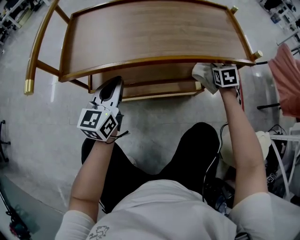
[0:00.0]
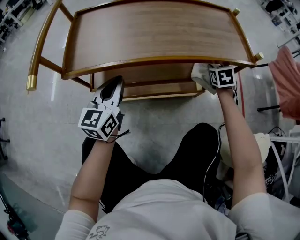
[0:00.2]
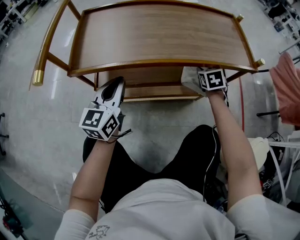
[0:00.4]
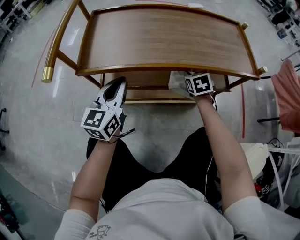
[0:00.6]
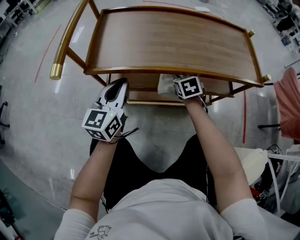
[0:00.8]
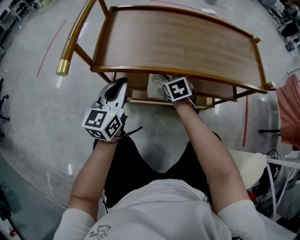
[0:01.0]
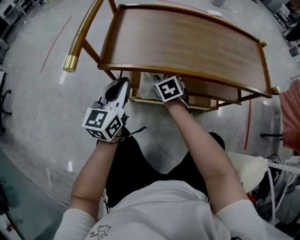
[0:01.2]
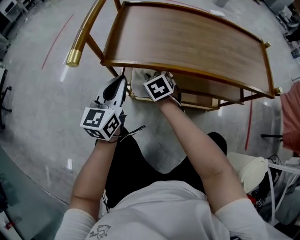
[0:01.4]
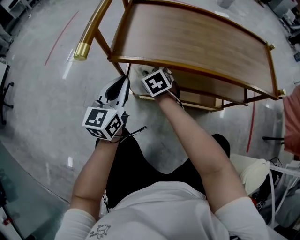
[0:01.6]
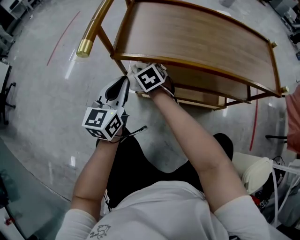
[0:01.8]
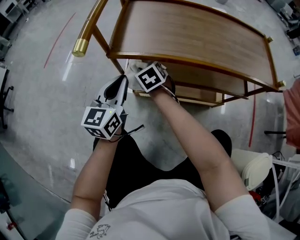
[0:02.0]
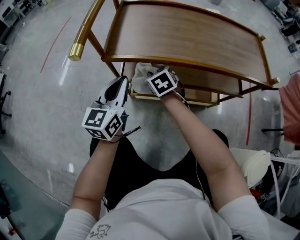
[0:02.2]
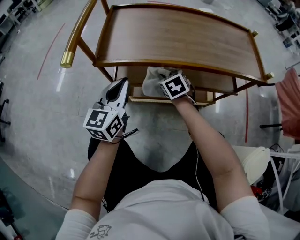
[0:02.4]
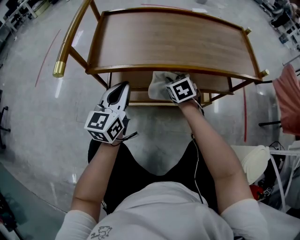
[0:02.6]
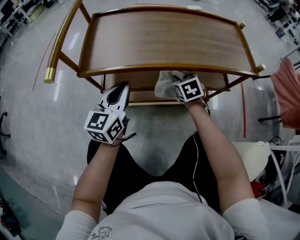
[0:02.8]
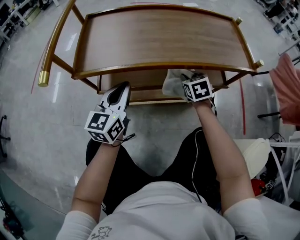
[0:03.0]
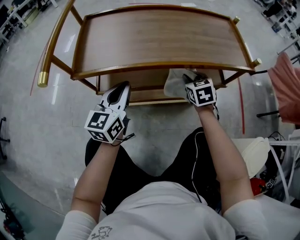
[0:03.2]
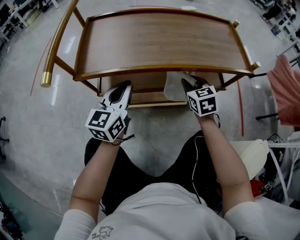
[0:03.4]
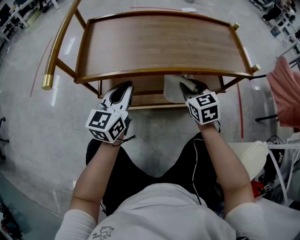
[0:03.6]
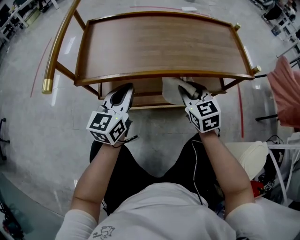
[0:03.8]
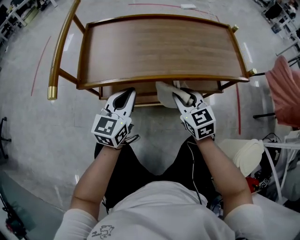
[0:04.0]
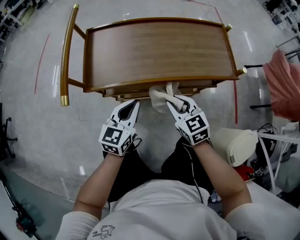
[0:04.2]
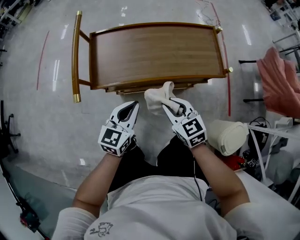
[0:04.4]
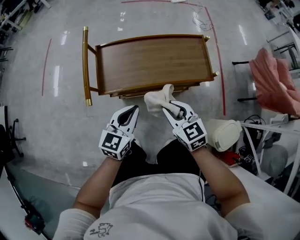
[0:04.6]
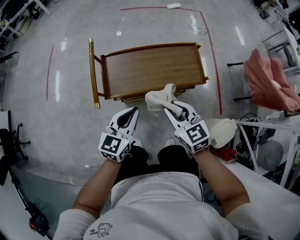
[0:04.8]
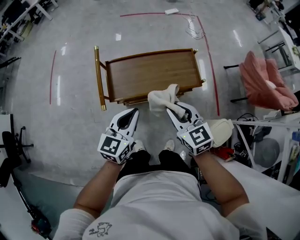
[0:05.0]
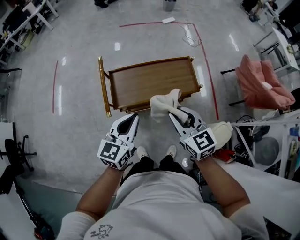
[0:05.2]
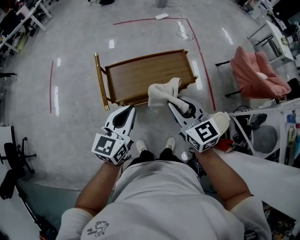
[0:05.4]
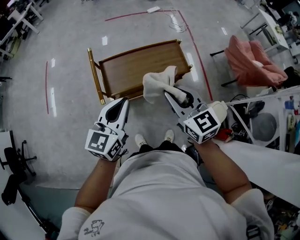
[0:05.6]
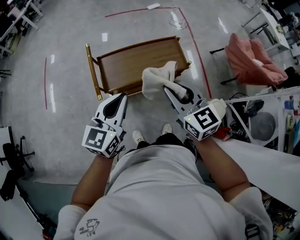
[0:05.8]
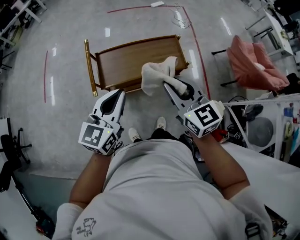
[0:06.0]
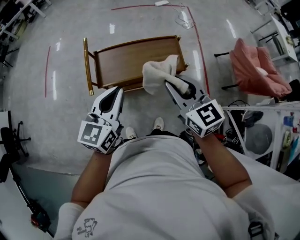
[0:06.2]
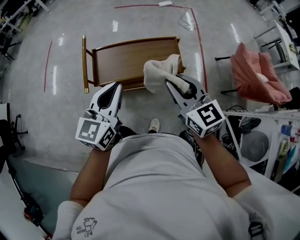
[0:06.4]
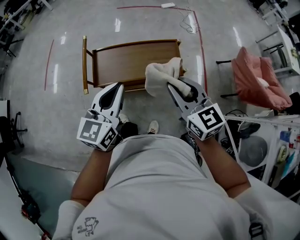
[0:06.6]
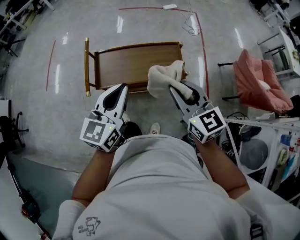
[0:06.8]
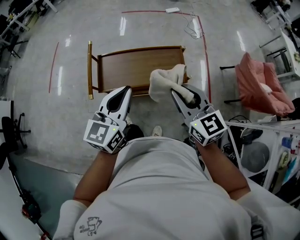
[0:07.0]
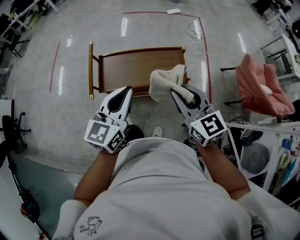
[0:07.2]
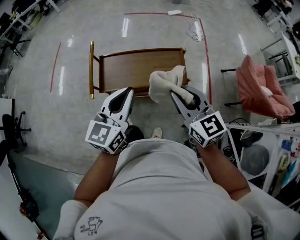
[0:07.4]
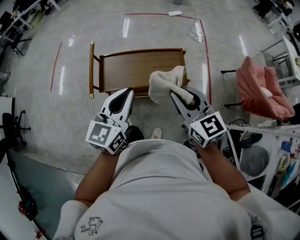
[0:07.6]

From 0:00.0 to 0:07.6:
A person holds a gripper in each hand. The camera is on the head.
From 0:00.0 to 0:01.6: The left gripper ends up roughly 15 cm from where it was, while the right gripper moves approximately 50 cm, and swivels approximately 40 degrees.
From 0:01.6 to 0:03.0: The left gripper is displaced to the right by about 10 cm. The right gripper is displaced to the right by roughly 30 cm, and turns by roughly 20 degrees.
From 0:03.0 to 0:04.6: The right gripper moves upward and backward, some 40 cm, and swivels roughly 20 degrees, while the left gripper travels upward by about 25 cm.
From 0:04.6 to 0:06.0: Both grippers move upward, roughly 30 cm.
From 0:06.0 to 0:07.6: The grippers both shift to the right by approximately 10 cm.

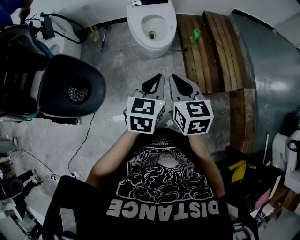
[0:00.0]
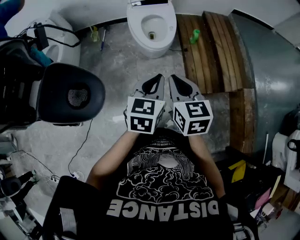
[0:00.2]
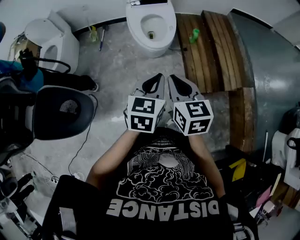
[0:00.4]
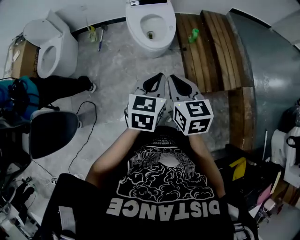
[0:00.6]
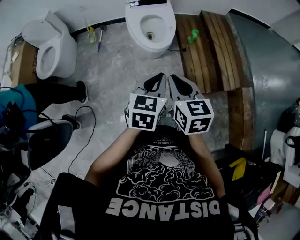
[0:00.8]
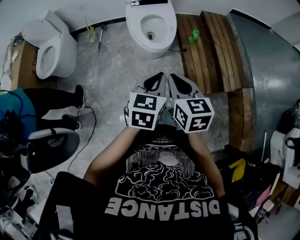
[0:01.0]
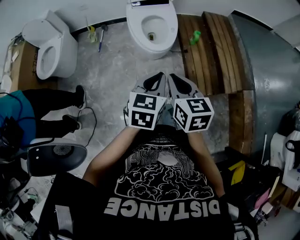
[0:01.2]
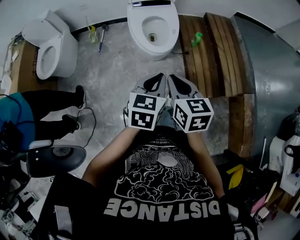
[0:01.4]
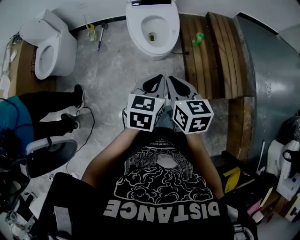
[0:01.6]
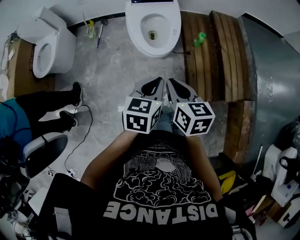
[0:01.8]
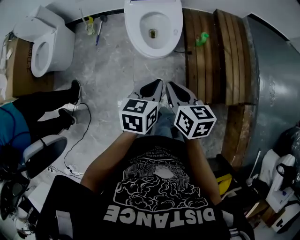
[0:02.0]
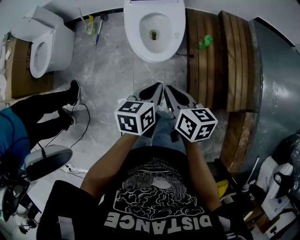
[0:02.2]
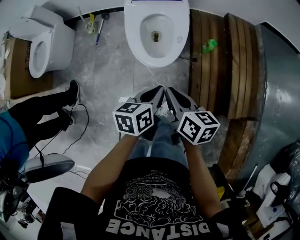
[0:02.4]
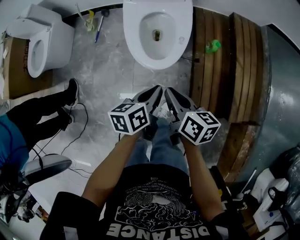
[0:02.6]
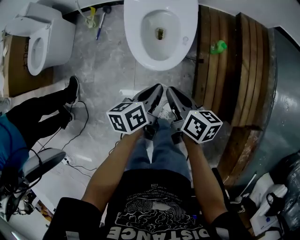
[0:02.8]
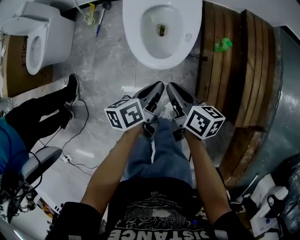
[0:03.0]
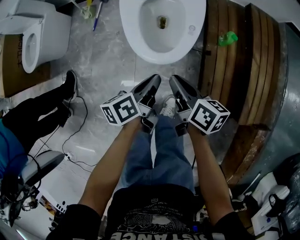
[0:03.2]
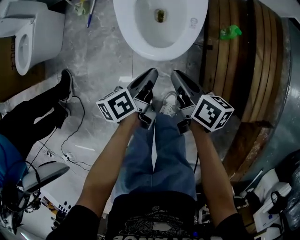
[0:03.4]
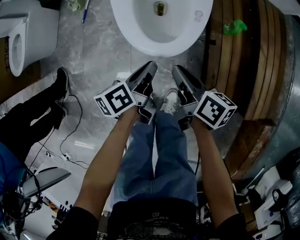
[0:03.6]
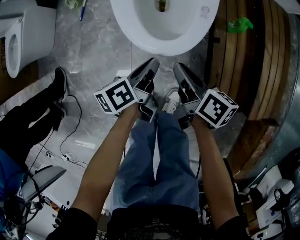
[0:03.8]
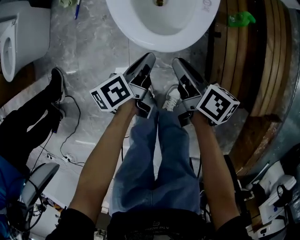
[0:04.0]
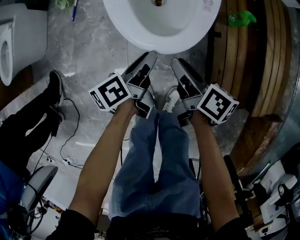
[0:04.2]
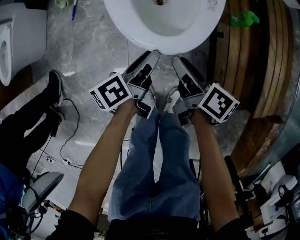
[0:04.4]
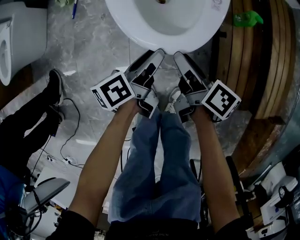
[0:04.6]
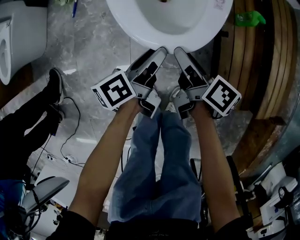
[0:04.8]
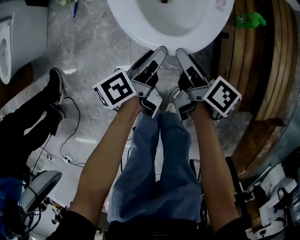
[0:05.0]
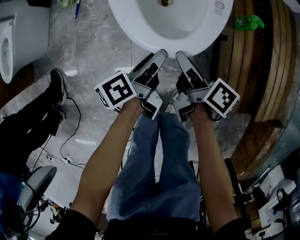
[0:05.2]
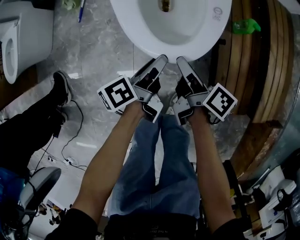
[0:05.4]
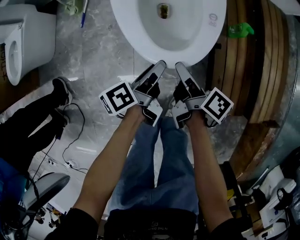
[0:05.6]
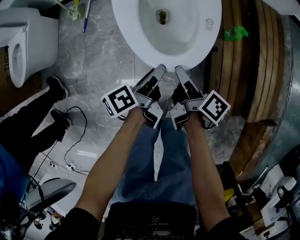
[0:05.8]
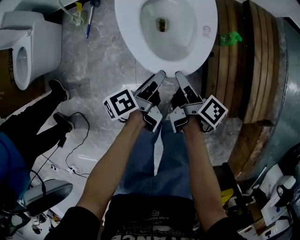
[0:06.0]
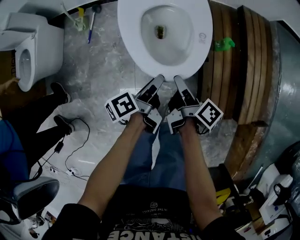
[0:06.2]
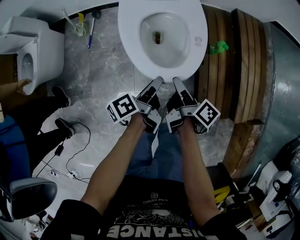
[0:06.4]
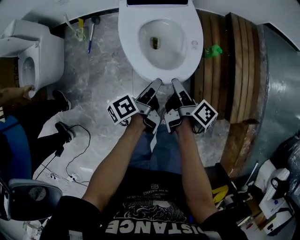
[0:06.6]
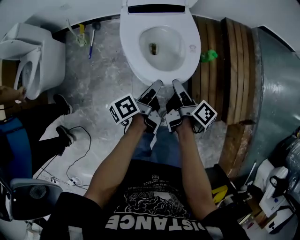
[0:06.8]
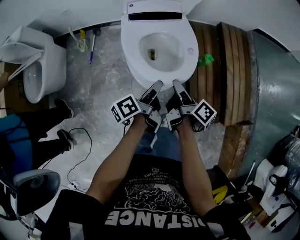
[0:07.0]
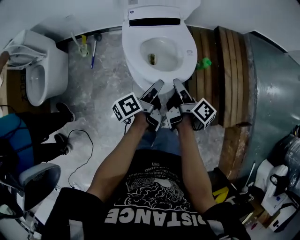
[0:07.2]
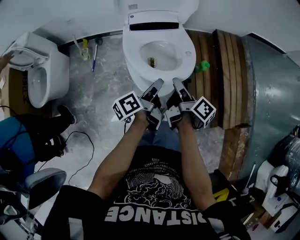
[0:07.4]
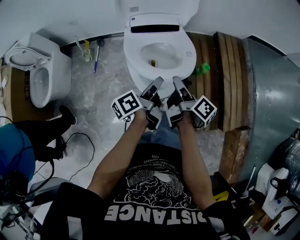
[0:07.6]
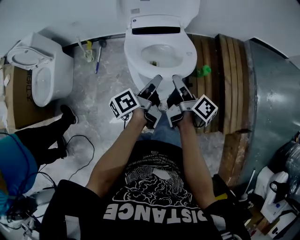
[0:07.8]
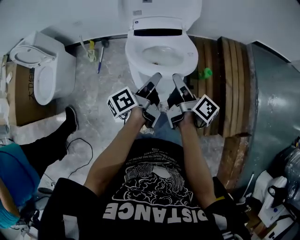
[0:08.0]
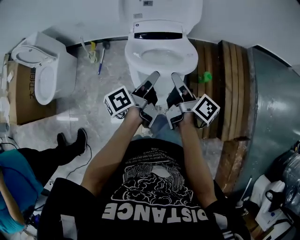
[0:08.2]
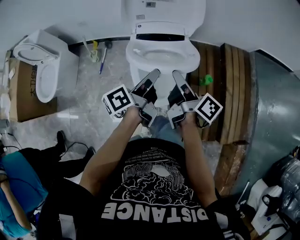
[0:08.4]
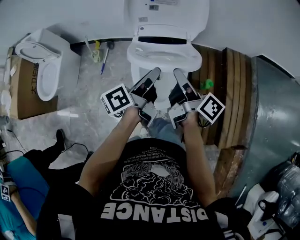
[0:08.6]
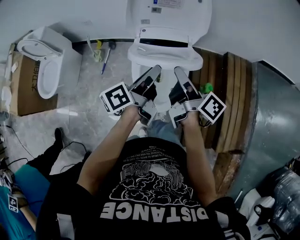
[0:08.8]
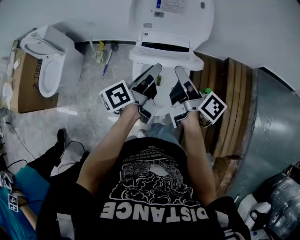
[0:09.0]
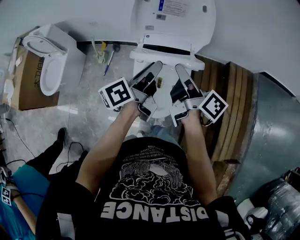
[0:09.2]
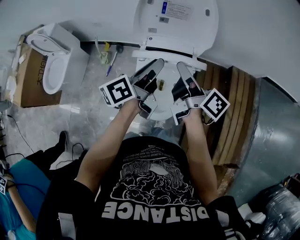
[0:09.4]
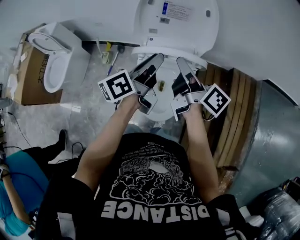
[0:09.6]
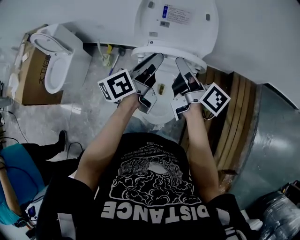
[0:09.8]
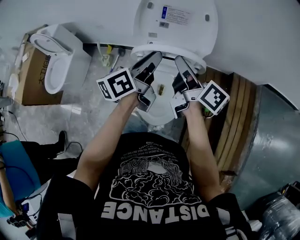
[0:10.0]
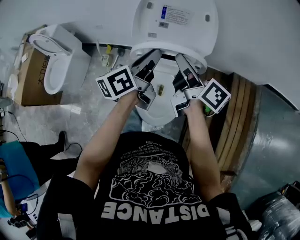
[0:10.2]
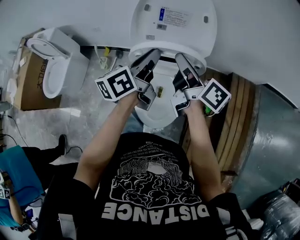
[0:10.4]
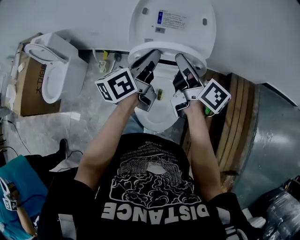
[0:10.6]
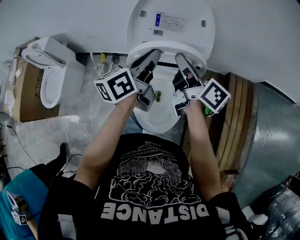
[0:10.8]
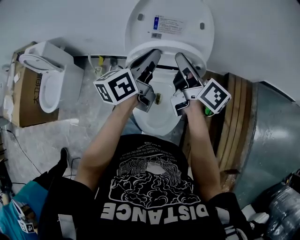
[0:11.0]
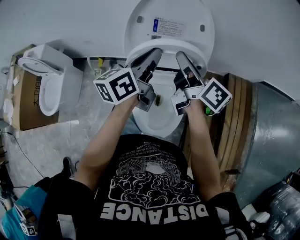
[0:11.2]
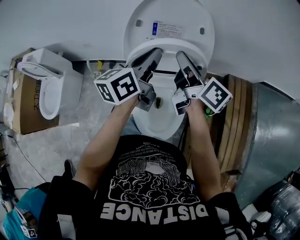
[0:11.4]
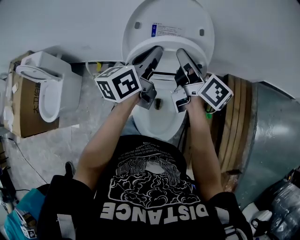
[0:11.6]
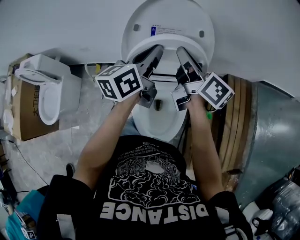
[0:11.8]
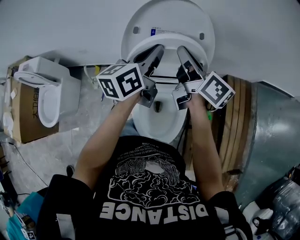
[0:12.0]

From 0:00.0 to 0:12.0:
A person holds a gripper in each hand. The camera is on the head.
From 0:00.0 to 0:01.6: The two grippers go some 10 cm forward.
From 0:01.6 to 0:03.0: The left gripper heads downward and forward, covering approximately 30 cm, and twists about 50 degrees counterclockwise, seen from behind; the right gripper is displaced forward and downward by roughly 30 cm, and changes its angle by some 40 degrees.
From 0:03.0 to 0:04.4: Both grippers move downward, some 20 cm. The right gripper opens up. The left gripper opens its fingers.
From 0:04.4 to 0:06.0: Both grippers travel together upward, some 10 cm.
From 0:06.0 to 0:07.6: Both grippers move upward, some 20 cm.
From 0:07.6 to 0:09.0: Both grippers move forward and upward, some 20 cm. The right gripper swivels about 30 degrees.
From 0:09.0 to 0:10.4: The left gripper is displaced forward by roughly 10 cm, and swivels about 20 degrees, while the right gripper goes some 10 cm forward and upward.
From 0:10.4 to 0:12.0: The two grippers go roughly 15 cm forward.

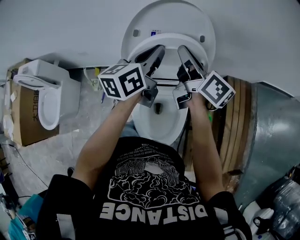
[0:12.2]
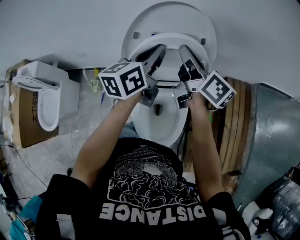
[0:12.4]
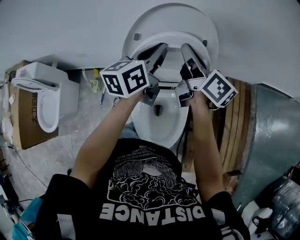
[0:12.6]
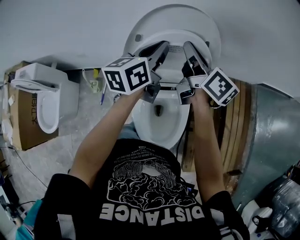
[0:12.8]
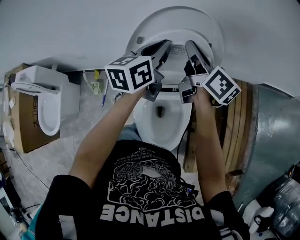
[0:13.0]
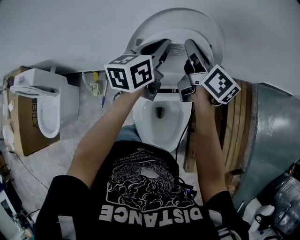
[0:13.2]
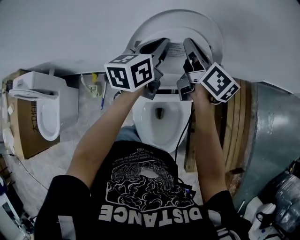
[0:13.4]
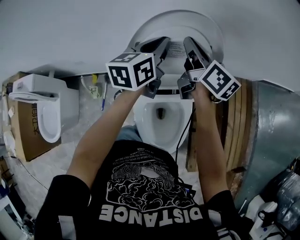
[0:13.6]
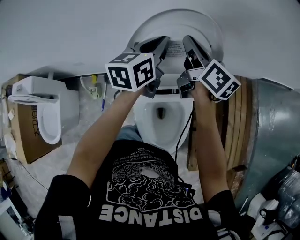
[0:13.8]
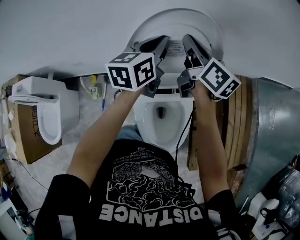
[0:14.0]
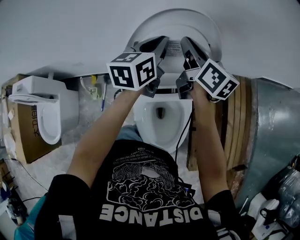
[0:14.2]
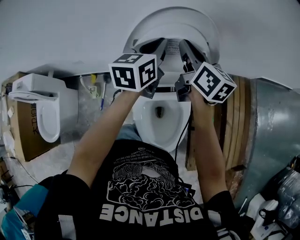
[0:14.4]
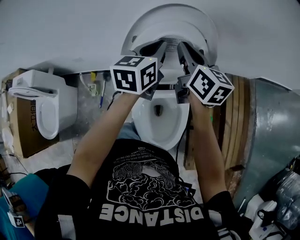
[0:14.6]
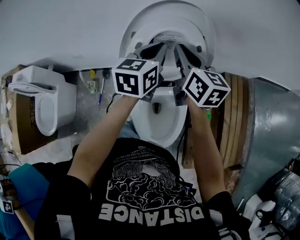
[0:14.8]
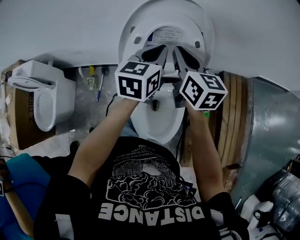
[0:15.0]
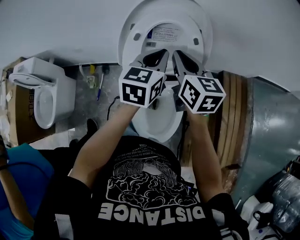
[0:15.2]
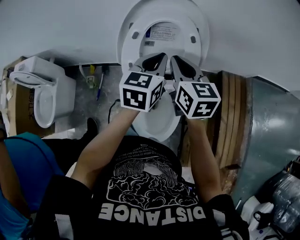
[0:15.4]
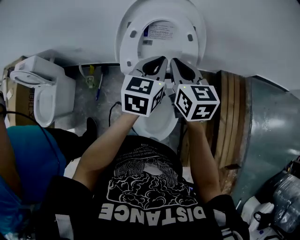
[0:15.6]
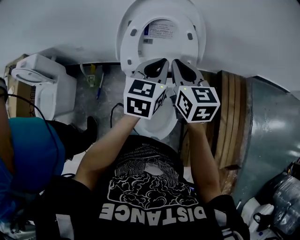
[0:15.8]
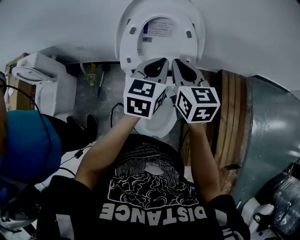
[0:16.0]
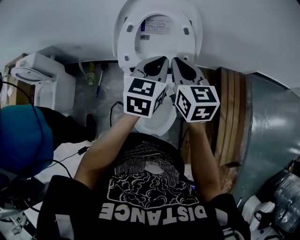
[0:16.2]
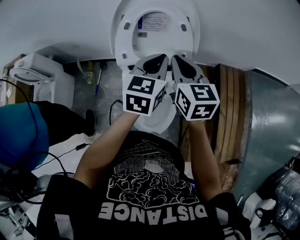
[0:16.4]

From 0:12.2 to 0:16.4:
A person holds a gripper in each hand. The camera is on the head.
From 0:12.2 to 0:13.6: Both grippers travel together forward, some 10 cm.
From 0:13.6 to 0:15.0: The grippers both shift backward by some 10 cm. The right gripper swivels roughly 30 degrees.
From 0:15.0 to 0:16.4: The left gripper travels backward and to the right by about 10 cm. The right gripper goes some 10 cm backward.
